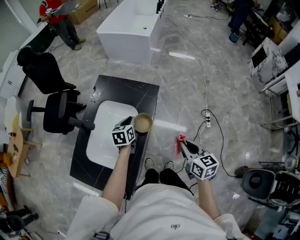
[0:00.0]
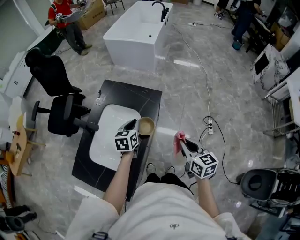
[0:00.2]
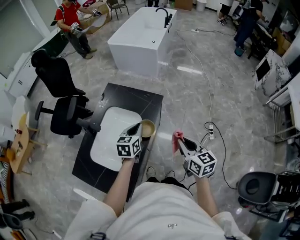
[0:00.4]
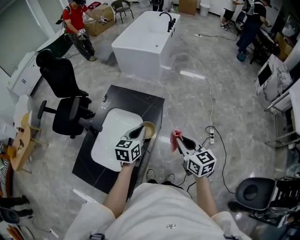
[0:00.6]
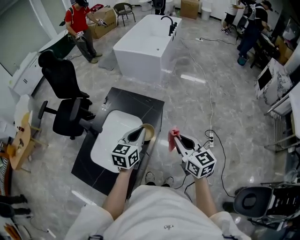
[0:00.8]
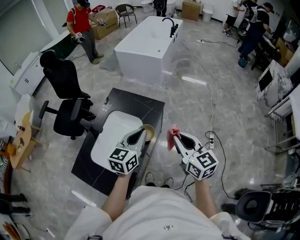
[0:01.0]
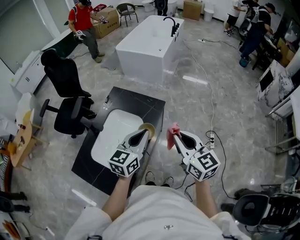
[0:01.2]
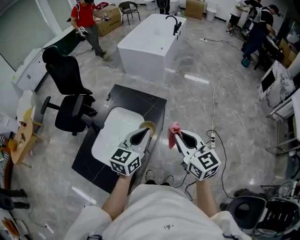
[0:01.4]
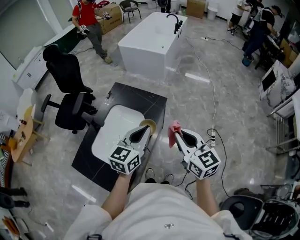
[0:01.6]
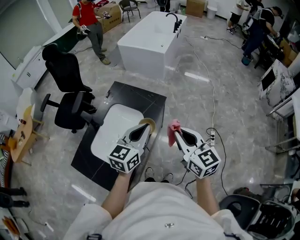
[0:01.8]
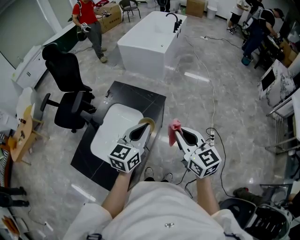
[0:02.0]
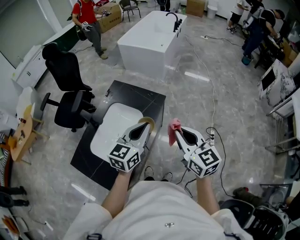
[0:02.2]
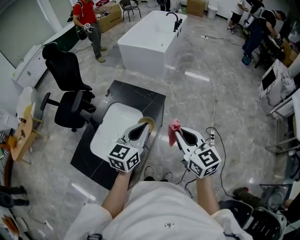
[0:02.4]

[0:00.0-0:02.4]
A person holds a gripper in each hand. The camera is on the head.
0:00.0 to 0:01.2: The left gripper travels upward and backward by about 25 cm, and swivels about 30 degrees. The right gripper travels upward by roughly 15 cm, and rotates approximately 30 degrees.
0:01.2 to 0:02.4: The grippers make only small movements.

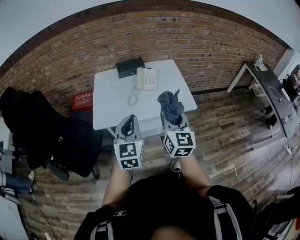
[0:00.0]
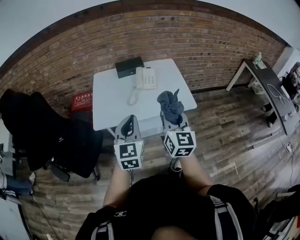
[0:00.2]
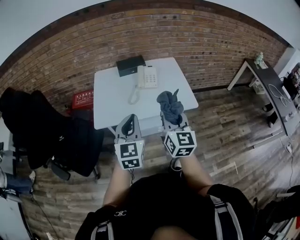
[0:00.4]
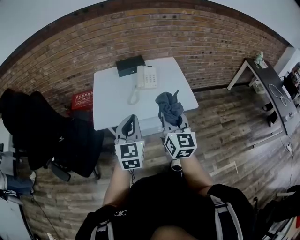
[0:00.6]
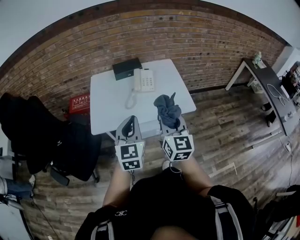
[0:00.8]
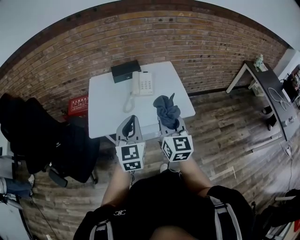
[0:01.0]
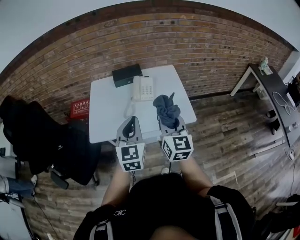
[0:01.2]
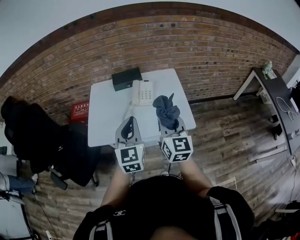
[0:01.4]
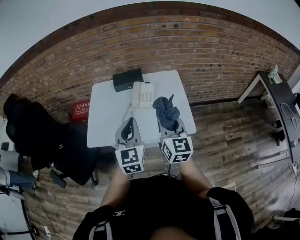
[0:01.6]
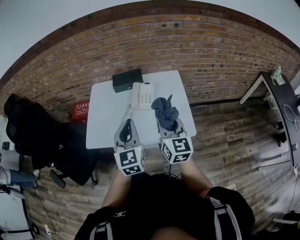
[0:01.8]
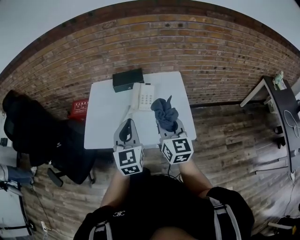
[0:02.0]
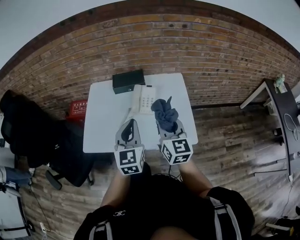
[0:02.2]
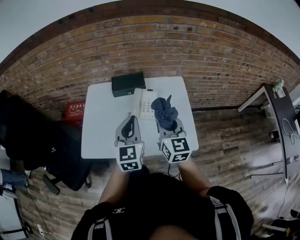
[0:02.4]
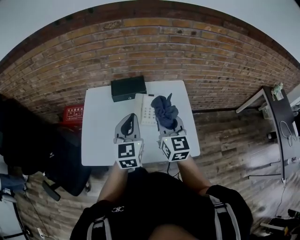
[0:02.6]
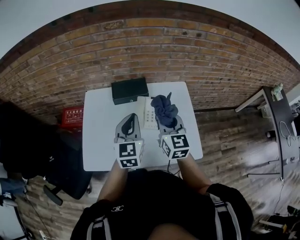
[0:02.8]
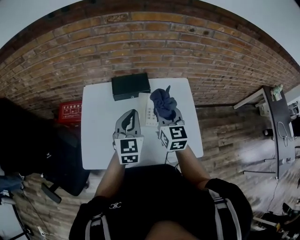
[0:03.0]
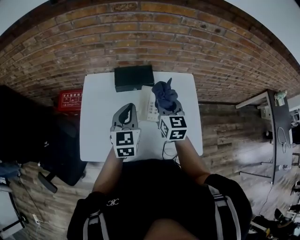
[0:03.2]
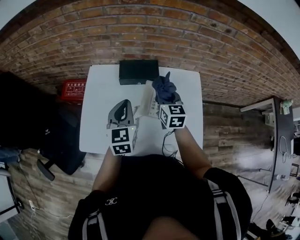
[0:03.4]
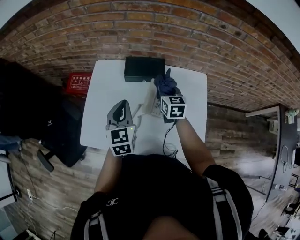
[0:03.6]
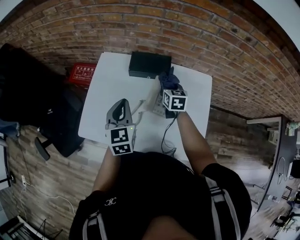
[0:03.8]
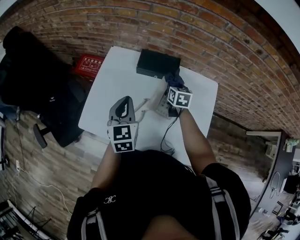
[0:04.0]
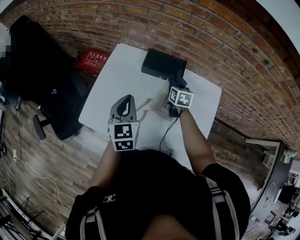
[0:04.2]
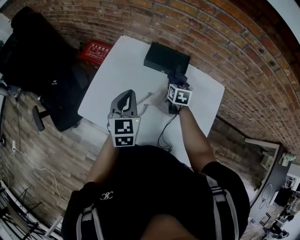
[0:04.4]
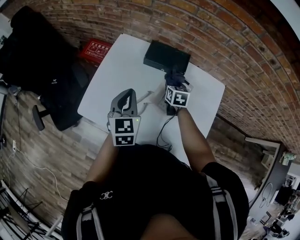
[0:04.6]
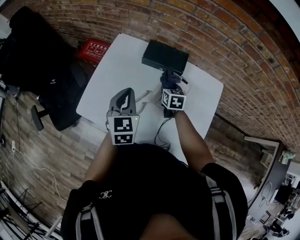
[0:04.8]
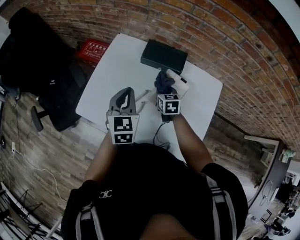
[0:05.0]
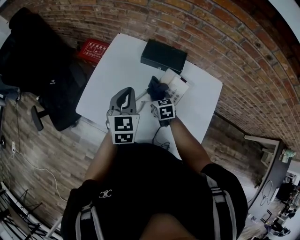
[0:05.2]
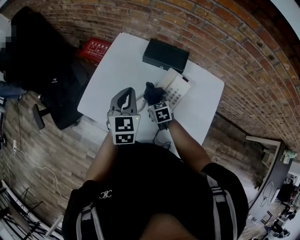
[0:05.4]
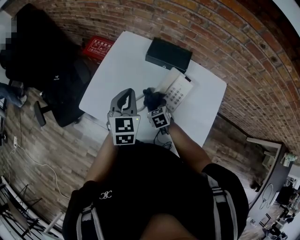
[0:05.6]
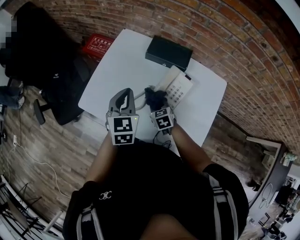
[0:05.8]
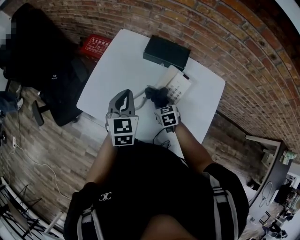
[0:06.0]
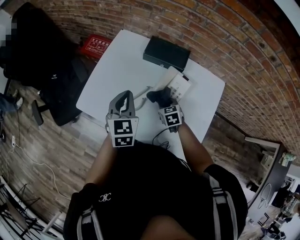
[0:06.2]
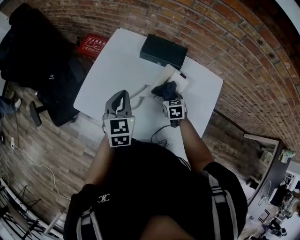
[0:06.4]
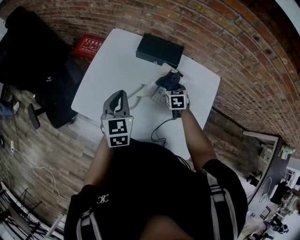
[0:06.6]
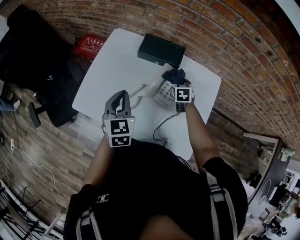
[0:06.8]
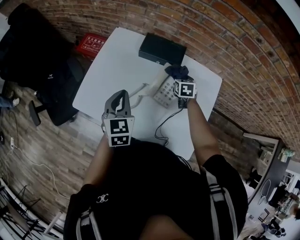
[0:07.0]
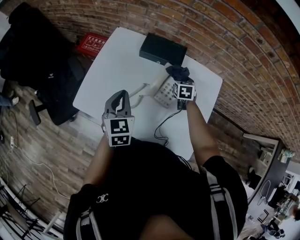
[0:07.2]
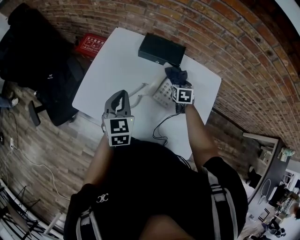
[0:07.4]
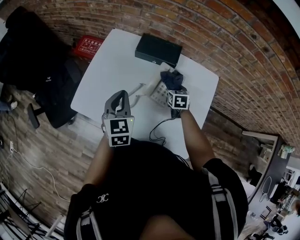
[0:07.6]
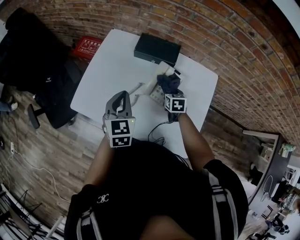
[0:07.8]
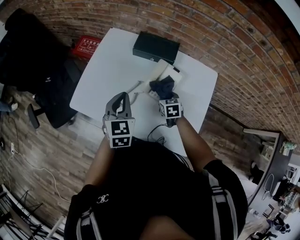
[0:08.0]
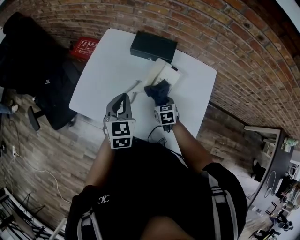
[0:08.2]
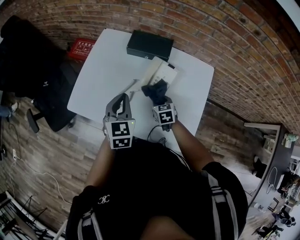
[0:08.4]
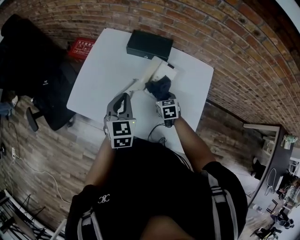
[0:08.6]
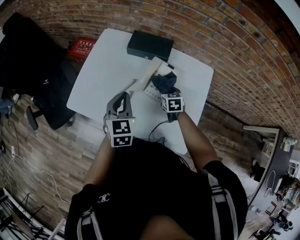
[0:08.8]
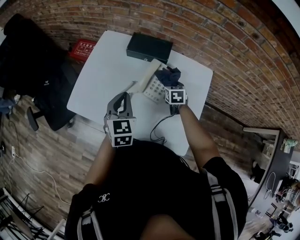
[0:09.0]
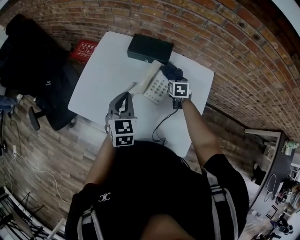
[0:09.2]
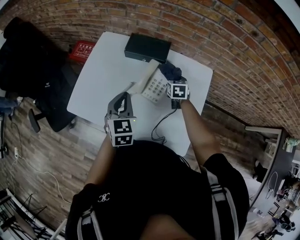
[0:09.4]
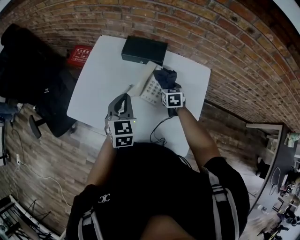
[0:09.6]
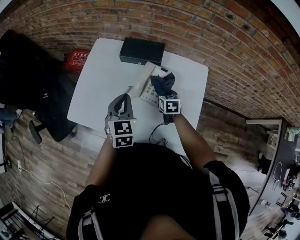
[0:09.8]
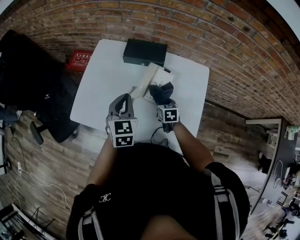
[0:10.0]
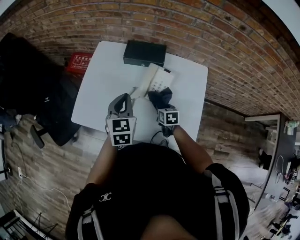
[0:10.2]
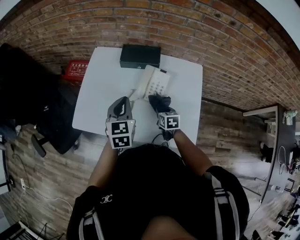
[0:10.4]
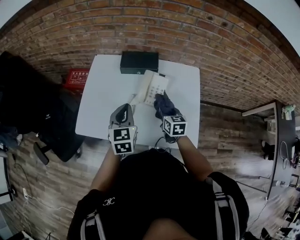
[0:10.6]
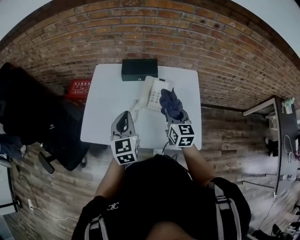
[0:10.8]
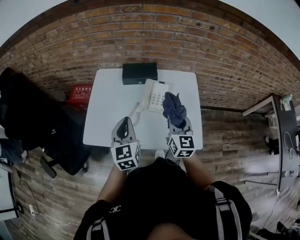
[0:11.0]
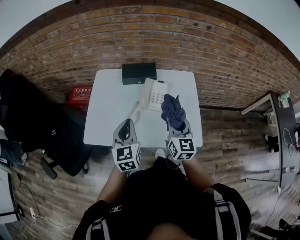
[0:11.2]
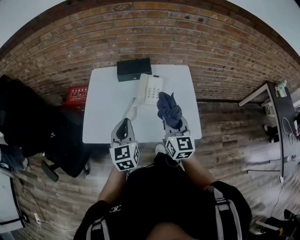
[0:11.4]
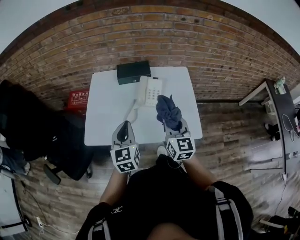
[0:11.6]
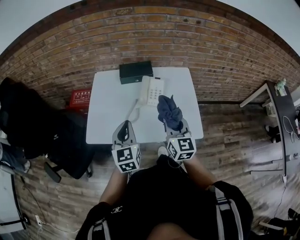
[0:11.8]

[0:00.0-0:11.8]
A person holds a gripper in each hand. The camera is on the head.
0:00.0 to 0:01.4: The two grippers go approximately 15 cm forward and to the right.
0:01.4 to 0:03.0: The grippers both shift forward by some 30 cm.
0:03.0 to 0:04.4: The left gripper ends up about 10 cm from where it was, and swivels roughly 30 degrees; the right gripper heads downward, covering approximately 20 cm, and points its fingers some 30 degrees further downward.
0:04.4 to 0:06.0: The right gripper moves backward, to the left and downward, about 15 cm, and changes its angle by roughly 30 degrees.
0:06.0 to 0:07.4: The right gripper travels to the right and forward by about 15 cm, and changes its angle by approximately 20 degrees.
0:07.4 to 0:08.8: The left gripper travels to the right by approximately 5 cm, while the right gripper goes roughly 10 cm backward.
0:08.8 to 0:10.4: The right gripper shifts some 10 cm backward.
0:10.4 to 0:11.8: The right gripper travels upward and backward by roughly 30 cm, and points its fingers some 40 degrees further upward. The left gripper heads backward, covering about 15 cm.

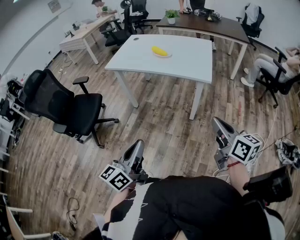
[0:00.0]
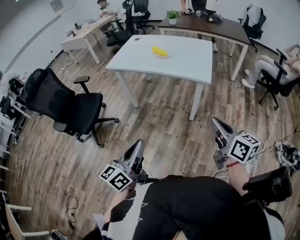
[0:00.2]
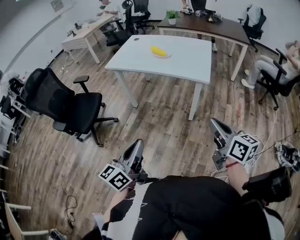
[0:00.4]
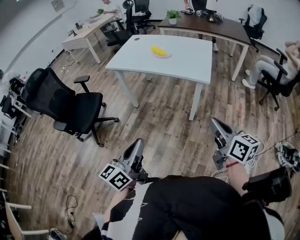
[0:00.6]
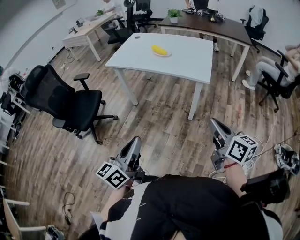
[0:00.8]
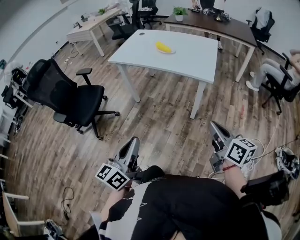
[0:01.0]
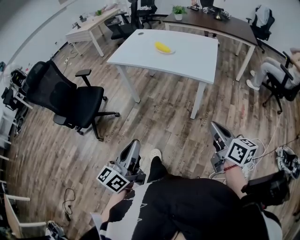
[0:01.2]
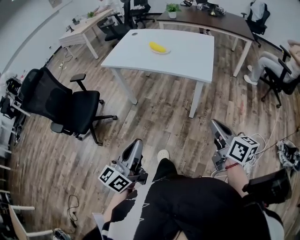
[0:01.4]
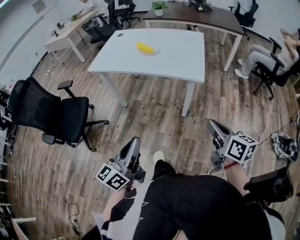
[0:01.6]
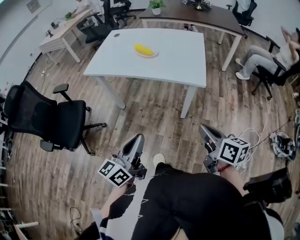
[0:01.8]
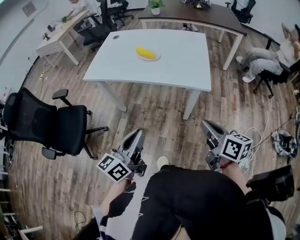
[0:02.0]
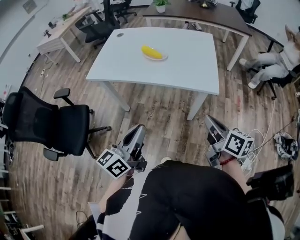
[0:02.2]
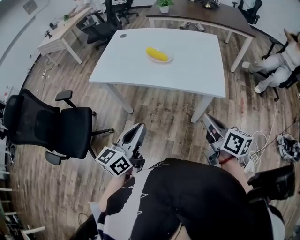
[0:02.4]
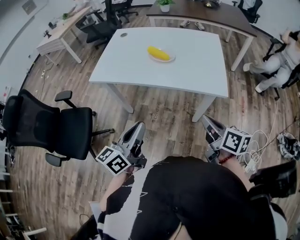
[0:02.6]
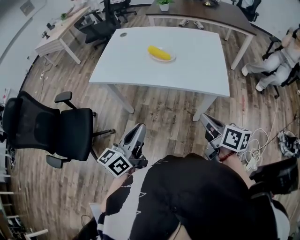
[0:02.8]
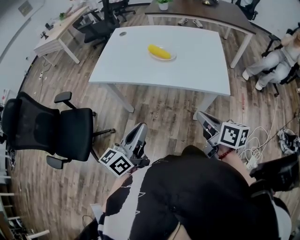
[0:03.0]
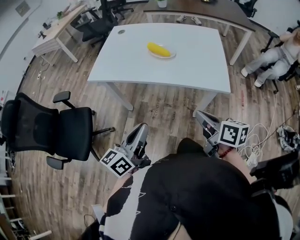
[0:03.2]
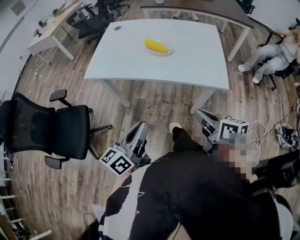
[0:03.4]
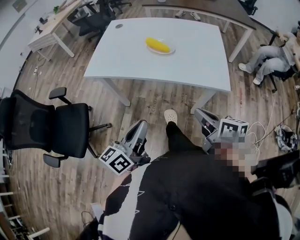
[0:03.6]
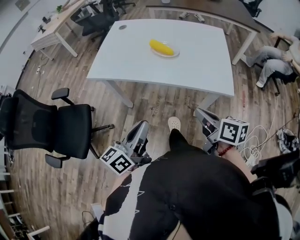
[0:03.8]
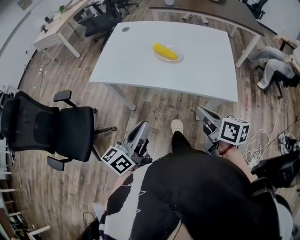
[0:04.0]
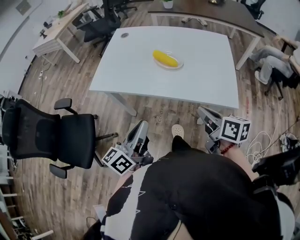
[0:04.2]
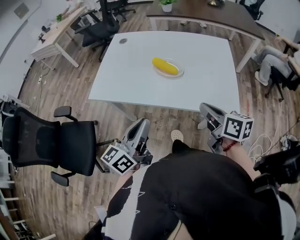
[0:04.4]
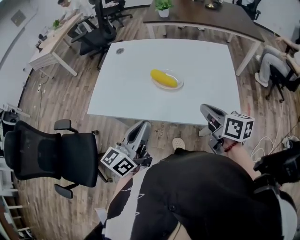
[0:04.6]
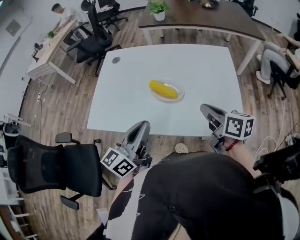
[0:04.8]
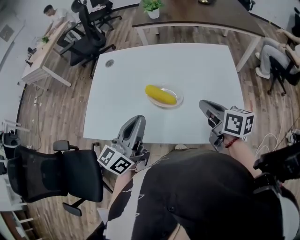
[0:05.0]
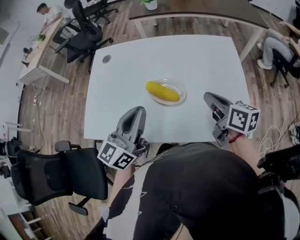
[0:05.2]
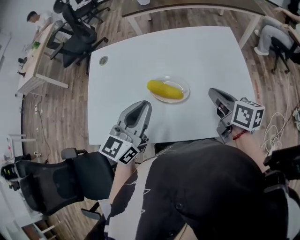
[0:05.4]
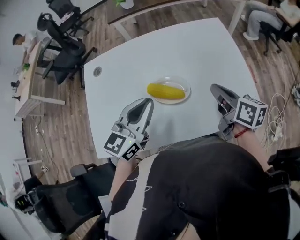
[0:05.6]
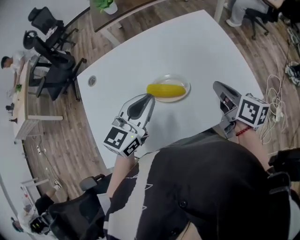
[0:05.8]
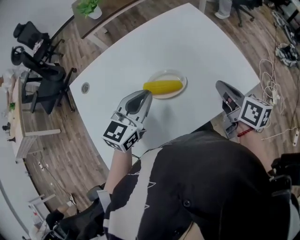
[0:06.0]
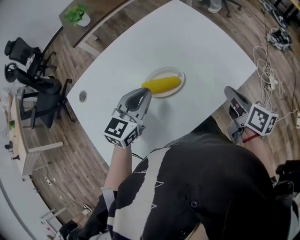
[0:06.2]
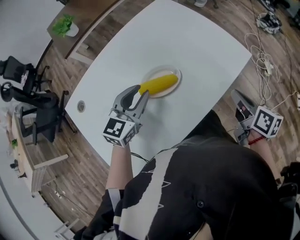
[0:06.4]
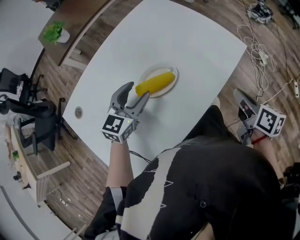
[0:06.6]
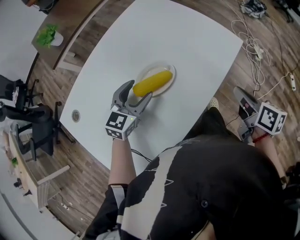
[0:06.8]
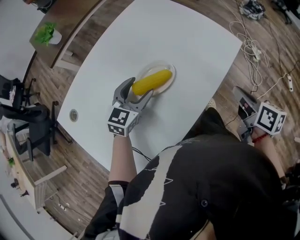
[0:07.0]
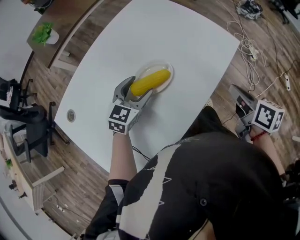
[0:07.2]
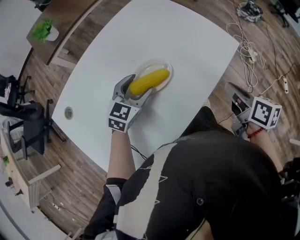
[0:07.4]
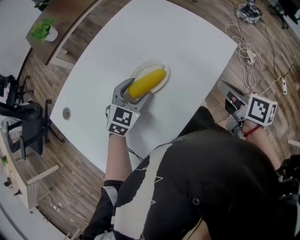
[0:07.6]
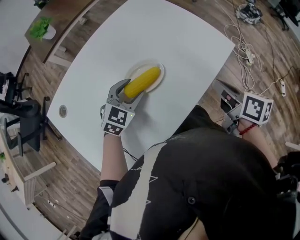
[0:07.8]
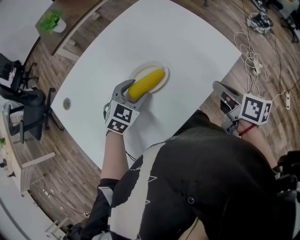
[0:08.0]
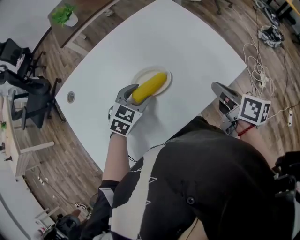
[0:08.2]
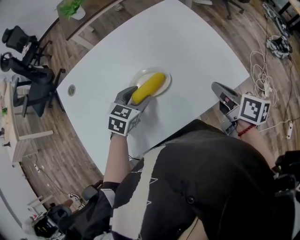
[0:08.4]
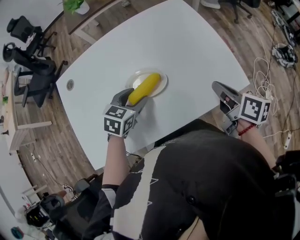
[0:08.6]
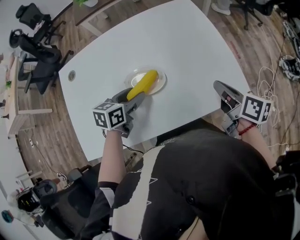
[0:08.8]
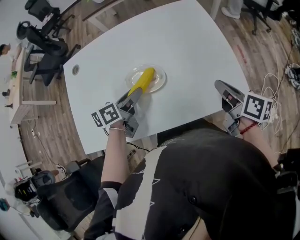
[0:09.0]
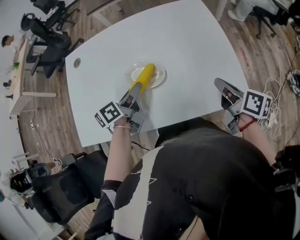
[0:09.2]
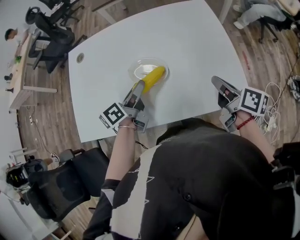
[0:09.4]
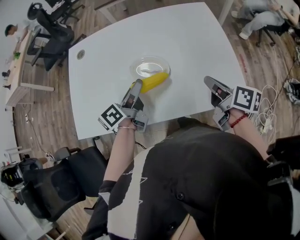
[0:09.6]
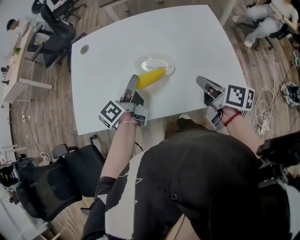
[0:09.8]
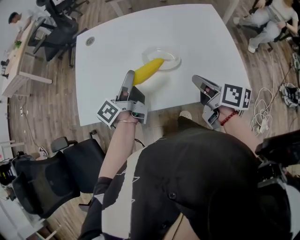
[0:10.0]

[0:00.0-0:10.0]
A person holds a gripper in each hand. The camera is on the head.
0:00.0 to 0:01.4: The left gripper moves roughly 5 cm, while the right gripper ends up some 5 cm from where it was.
0:01.4 to 0:02.8: The left gripper travels forward by roughly 30 cm. The right gripper shifts approximately 25 cm forward and to the left.
0:02.8 to 0:04.2: The two grippers go approximately 10 cm forward.
0:04.2 to 0:05.8: The right gripper ends up about 25 cm from where it was, and changes its angle by roughly 40 degrees. Meanwhile the left gripper moves roughly 40 cm, and swivels approximately 60 degrees.
0:05.8 to 0:07.2: The left gripper moves downward, roughly 15 cm, changes its angle by roughly 30 degrees, and opens its fingers. The right gripper changes place by approximately 15 cm, and swivels about 40 degrees.
0:07.2 to 0:08.6: The left gripper changes its angle by about 40 degrees, while the right gripper ends up about 15 cm from where it was, and rotates about 30 degrees.
0:08.6 to 0:10.0: The left gripper shifts by about 15 cm, and angles its fingers upward, by approximately 50 degrees; the right gripper moves about 15 cm.
